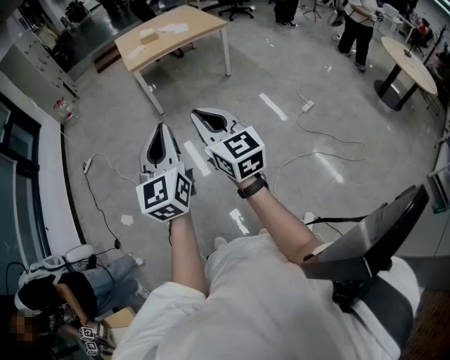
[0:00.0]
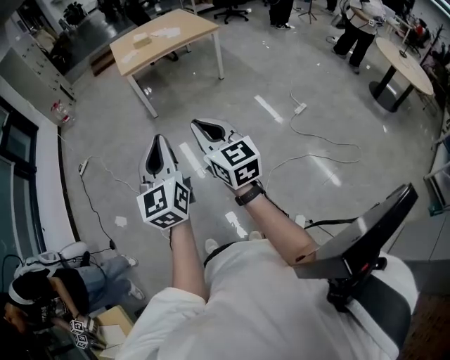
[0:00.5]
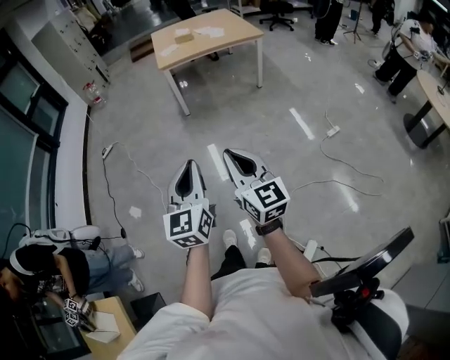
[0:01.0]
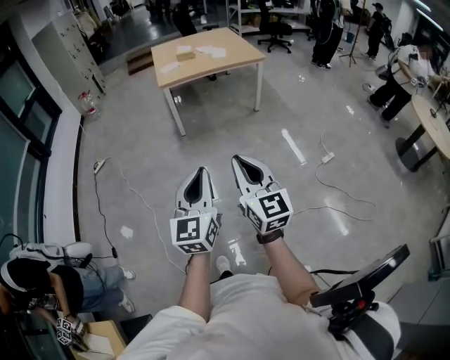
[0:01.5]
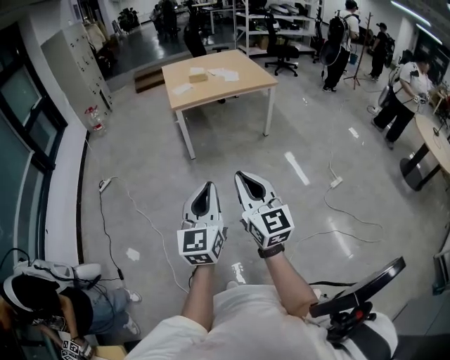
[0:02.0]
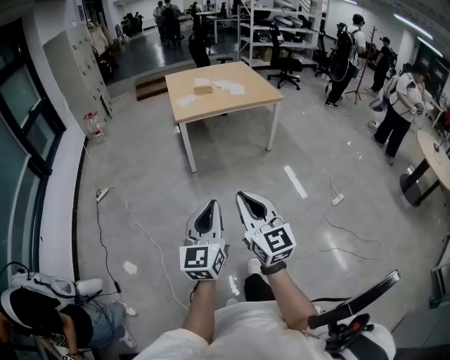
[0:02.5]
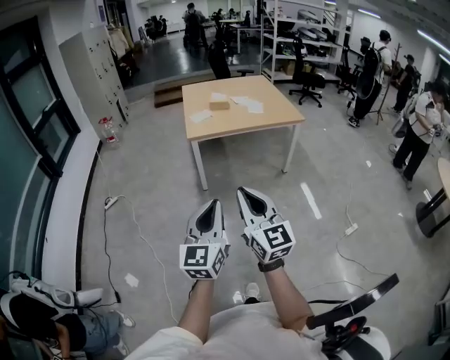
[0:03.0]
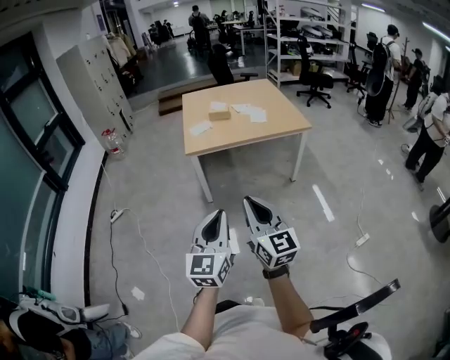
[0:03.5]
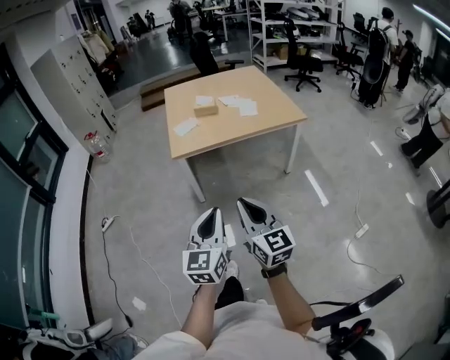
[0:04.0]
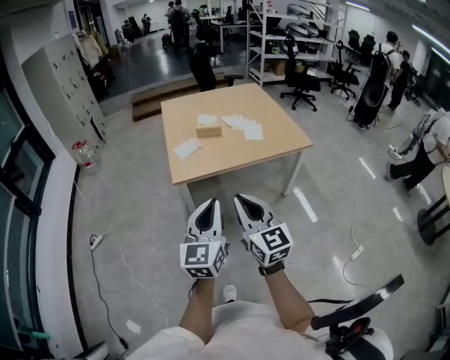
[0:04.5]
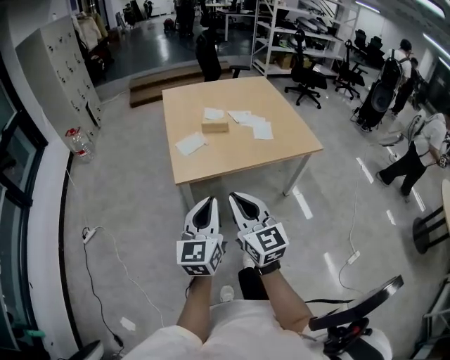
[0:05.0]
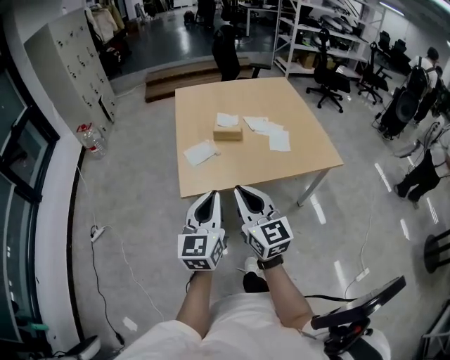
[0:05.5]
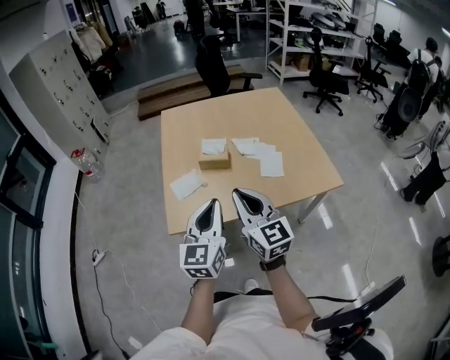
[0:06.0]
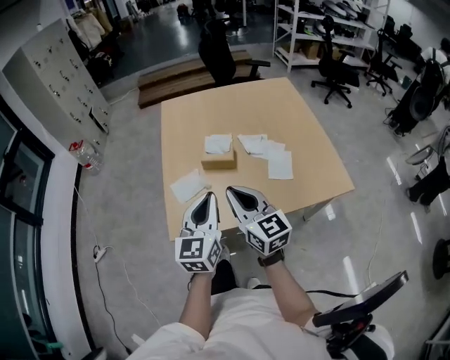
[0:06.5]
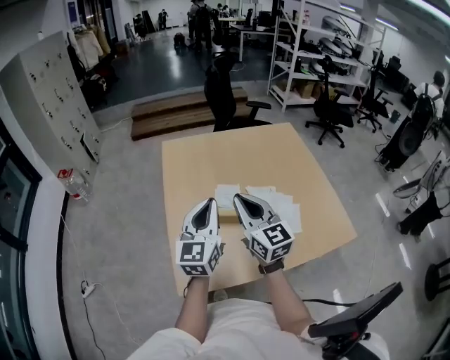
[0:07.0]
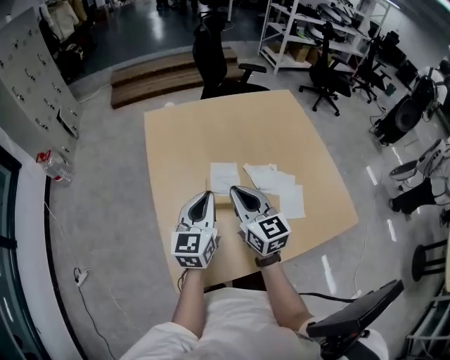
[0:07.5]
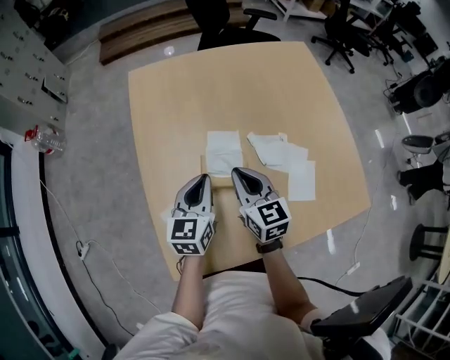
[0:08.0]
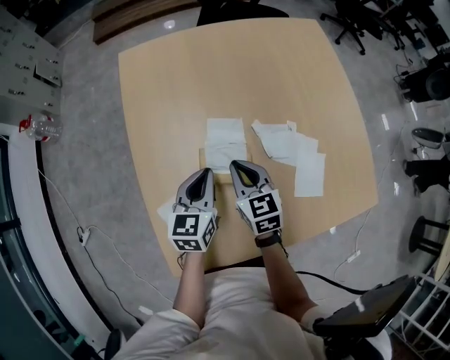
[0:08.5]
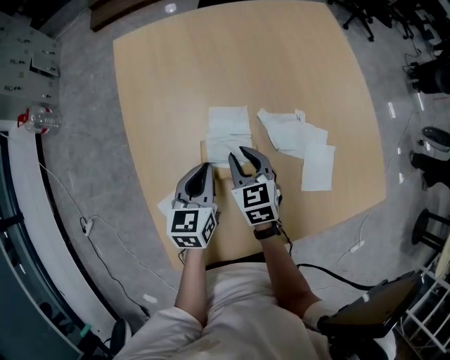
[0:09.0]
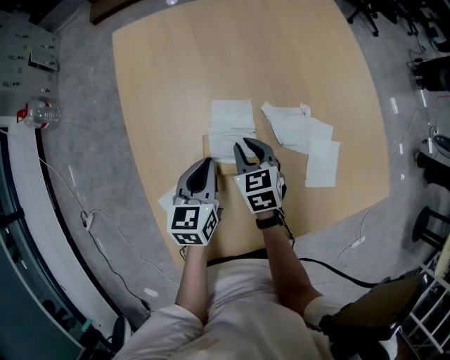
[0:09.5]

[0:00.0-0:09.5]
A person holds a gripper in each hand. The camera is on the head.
0:00.0 to 0:02.0: Both grippers move forward, some 15 cm.
0:02.0 to 0:04.0: The two grippers travel together, forward, approximately 50 cm.
0:04.0 to 0:05.5: The two grippers travel together, forward, some 40 cm.
0:05.5 to 0:07.5: The pair of grippers is taken forward, about 50 cm.
0:07.5 to 0:09.5: The grippers both shift downward and forward by about 25 cm. The right gripper tilts its fingers approximately 30 degrees downward. The left gripper swivels roughly 20 degrees.

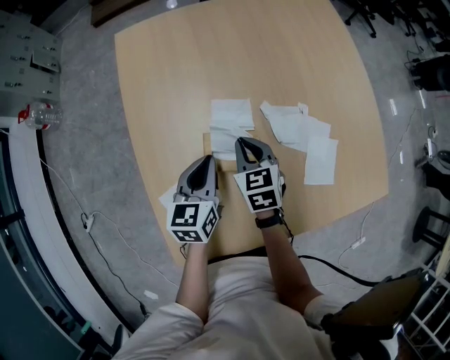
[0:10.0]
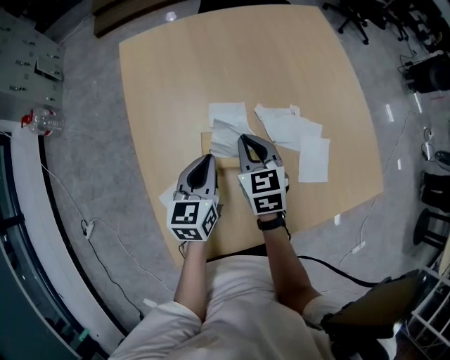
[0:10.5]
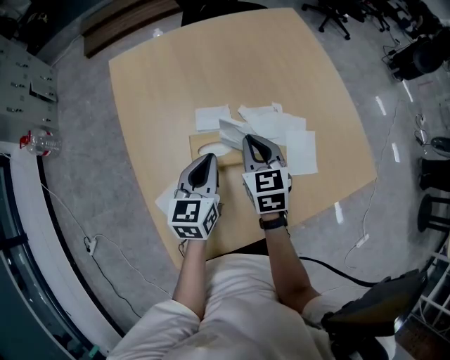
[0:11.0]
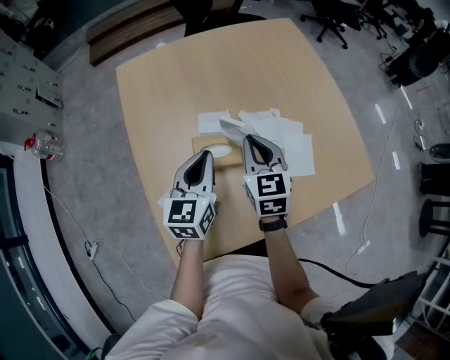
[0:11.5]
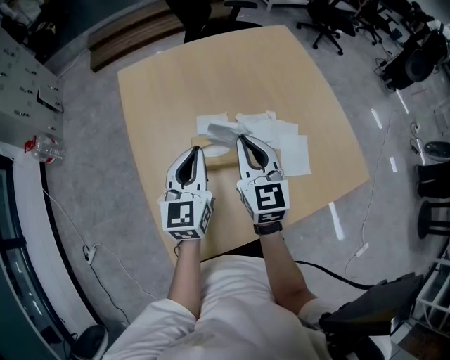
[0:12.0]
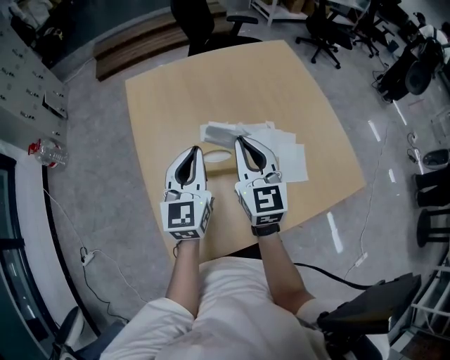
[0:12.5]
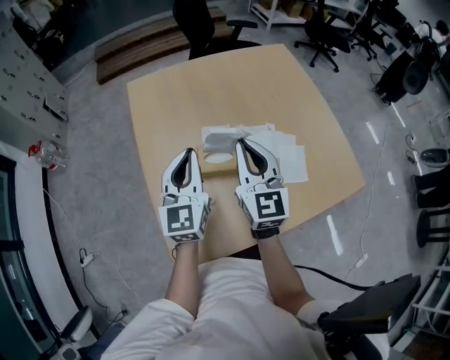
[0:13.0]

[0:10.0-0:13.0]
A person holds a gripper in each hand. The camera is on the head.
0:10.0 to 0:11.5: The left gripper travels upward by some 10 cm, while the right gripper heads upward and to the right, covering some 15 cm, and swivels some 20 degrees.
0:11.5 to 0:13.0: The left gripper travels upward and to the left by about 10 cm, and rotates about 20 degrees, while the right gripper moves upward and backward, about 15 cm, and swivels approximately 20 degrees.

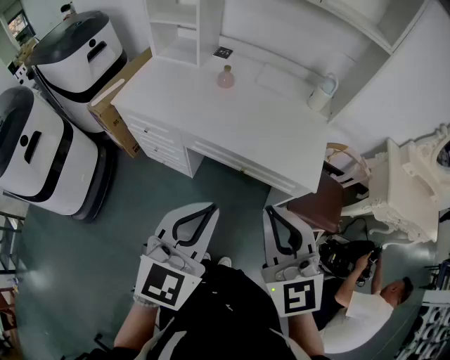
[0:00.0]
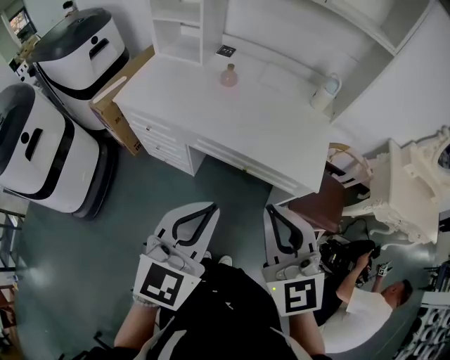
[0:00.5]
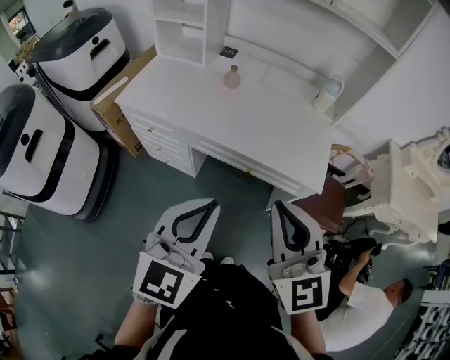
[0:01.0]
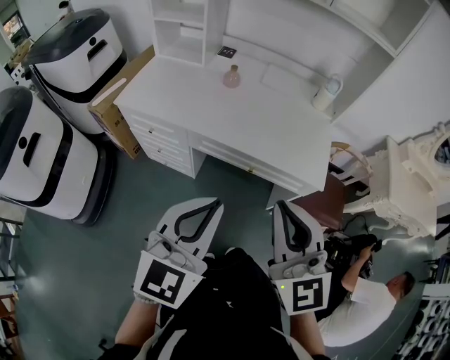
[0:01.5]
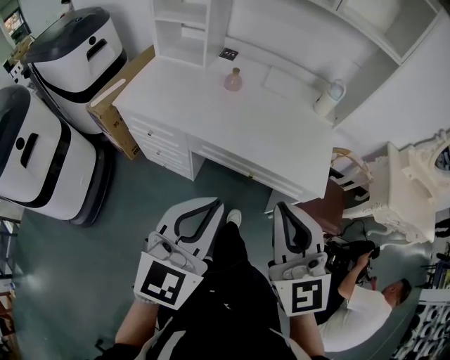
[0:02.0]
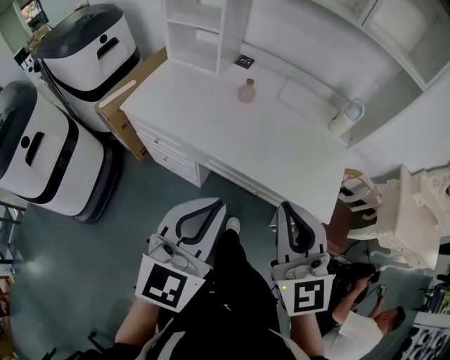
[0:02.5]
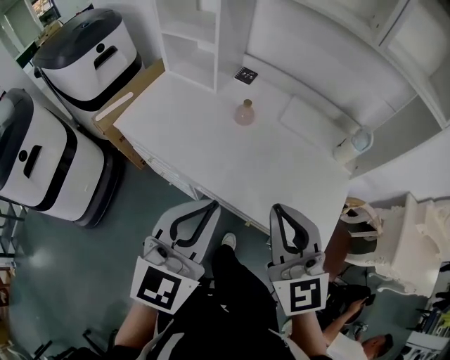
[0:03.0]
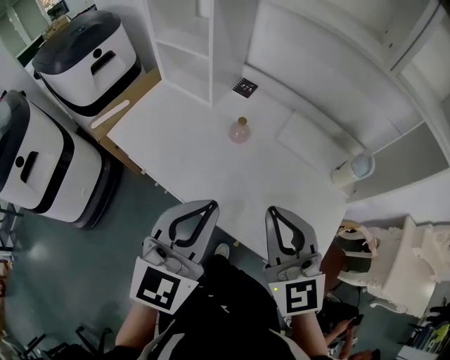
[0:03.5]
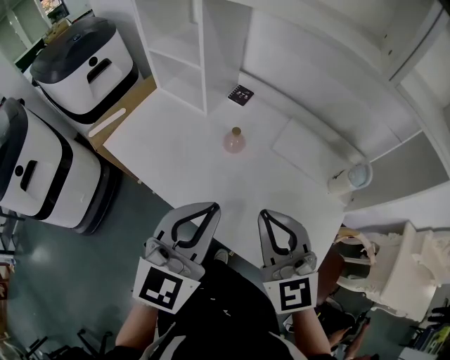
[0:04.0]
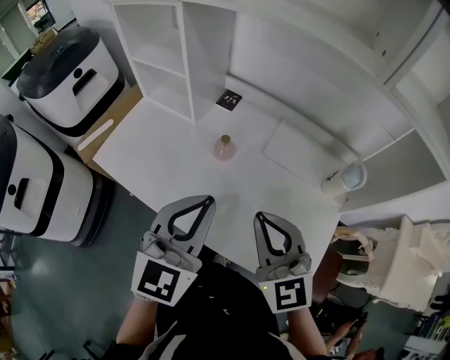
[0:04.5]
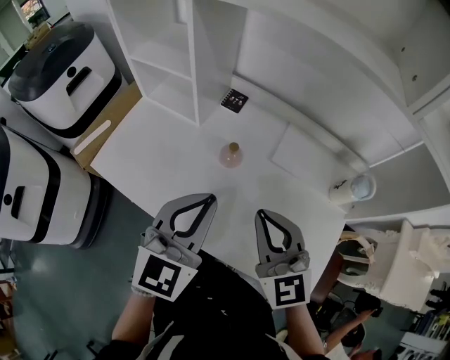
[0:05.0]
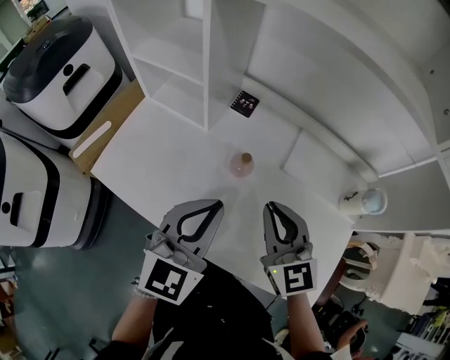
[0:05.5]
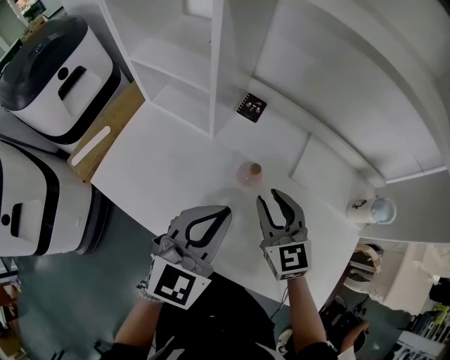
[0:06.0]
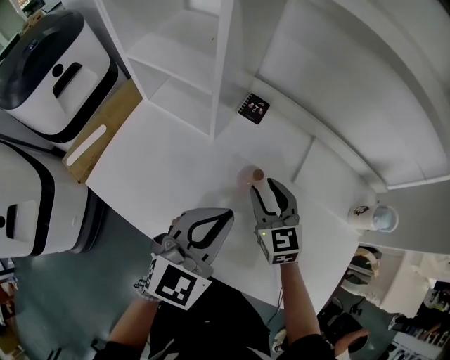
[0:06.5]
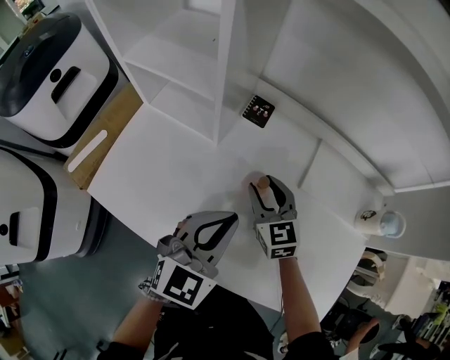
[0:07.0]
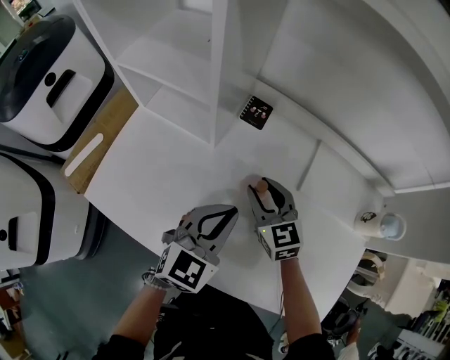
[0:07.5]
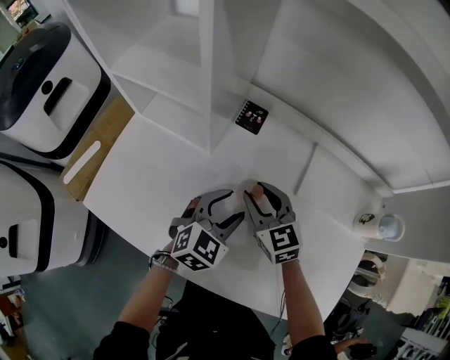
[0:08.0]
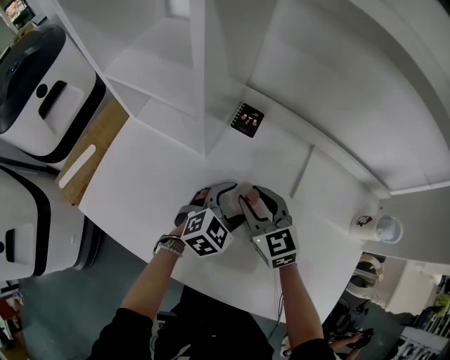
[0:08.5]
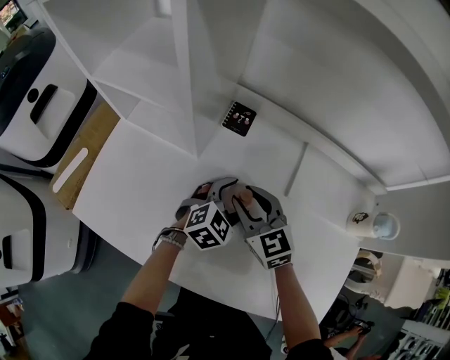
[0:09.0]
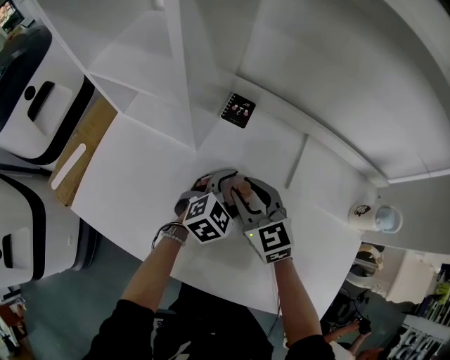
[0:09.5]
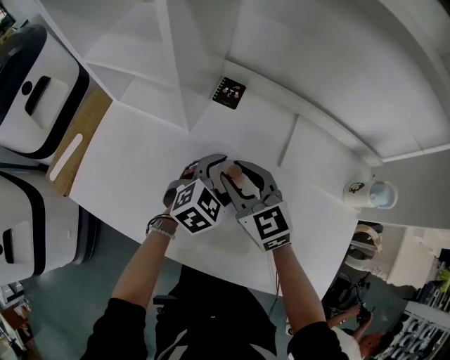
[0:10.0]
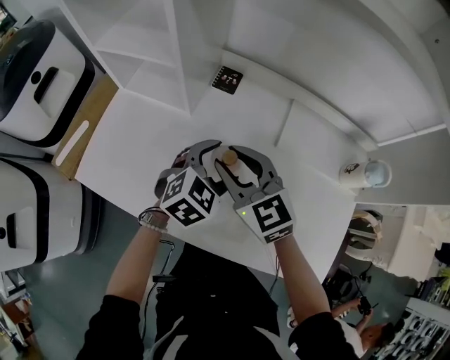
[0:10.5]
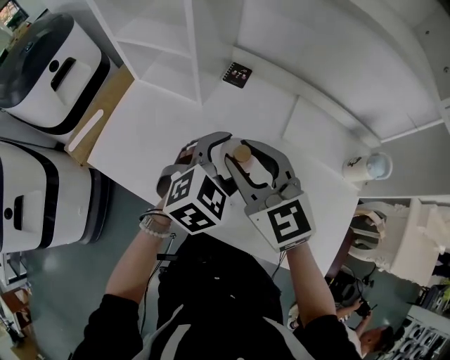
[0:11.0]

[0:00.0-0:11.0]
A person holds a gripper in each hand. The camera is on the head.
0:00.0 to 0:02.0: The left gripper changes place by some 5 cm.
0:02.0 to 0:03.5: The grippers both shift forward by about 25 cm.
0:03.5 to 0:05.5: The right gripper heads forward and downward, covering approximately 20 cm; the left gripper moves forward, some 20 cm.
0:05.5 to 0:07.5: The left gripper goes about 15 cm downward and forward. Meanwhile the right gripper moves downward, forward and to the left, about 20 cm, and opens.
0:07.5 to 0:09.0: The left gripper goes about 15 cm downward, forward and to the right, rotates some 30 degrees, and opens up.
0:09.0 to 0:11.0: Both grippers travel together upward and backward, about 20 cm.

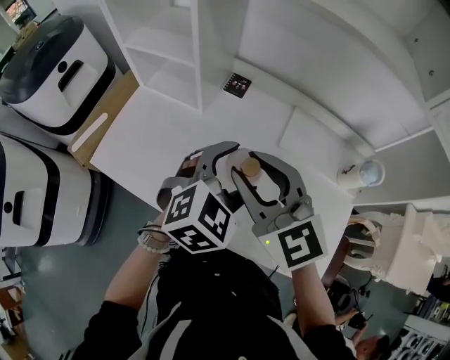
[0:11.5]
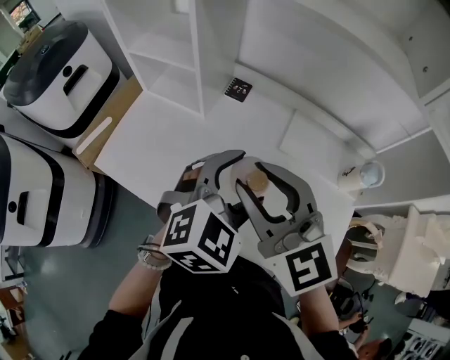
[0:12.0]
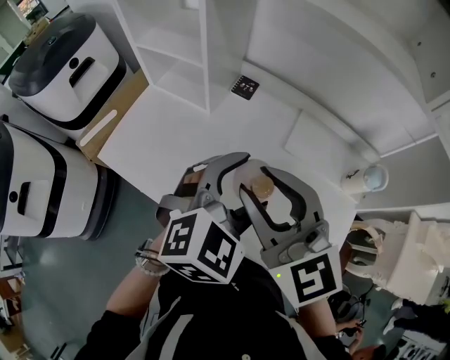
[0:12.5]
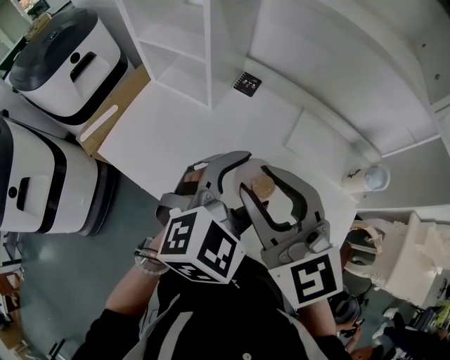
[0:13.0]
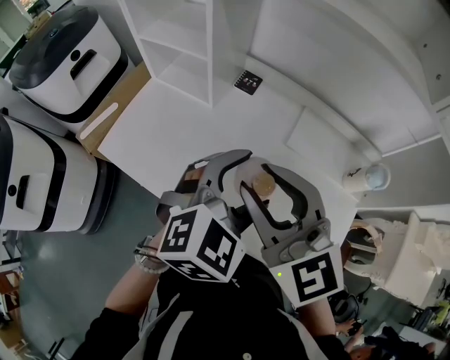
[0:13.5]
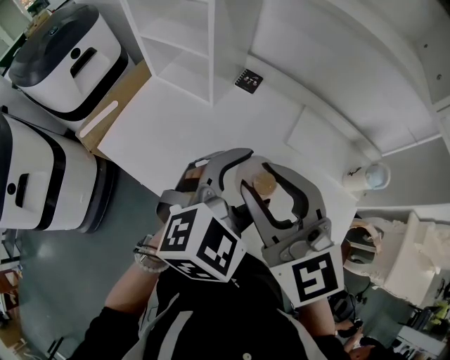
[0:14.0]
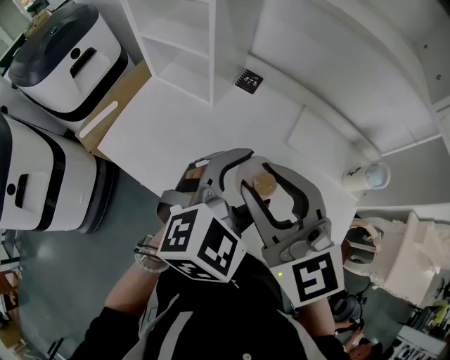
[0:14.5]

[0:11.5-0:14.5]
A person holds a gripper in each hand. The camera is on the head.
0:11.5 to 0:13.0: The right gripper ends up approximately 5 cm from where it was, while the left gripper shifts by roughly 5 cm.
0:13.0 to 0:14.5: The two grippers keep their place.
